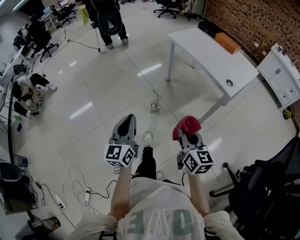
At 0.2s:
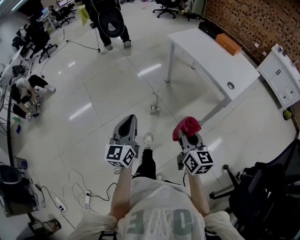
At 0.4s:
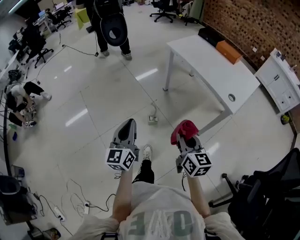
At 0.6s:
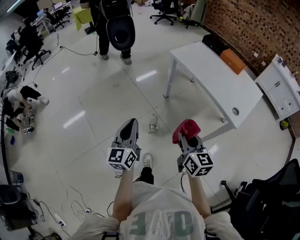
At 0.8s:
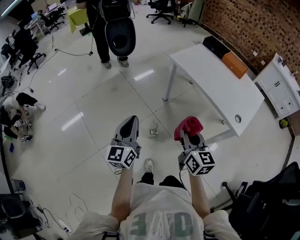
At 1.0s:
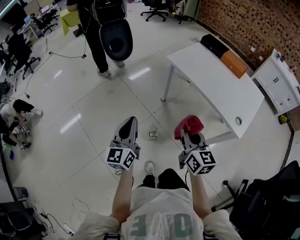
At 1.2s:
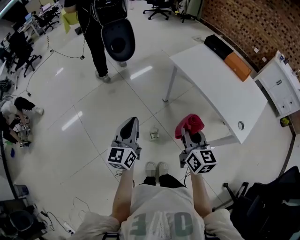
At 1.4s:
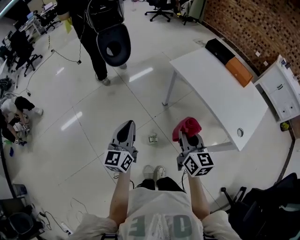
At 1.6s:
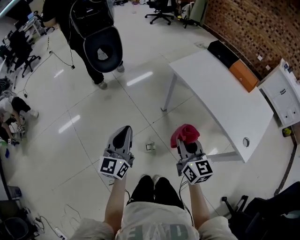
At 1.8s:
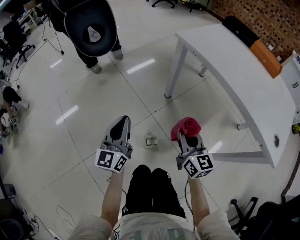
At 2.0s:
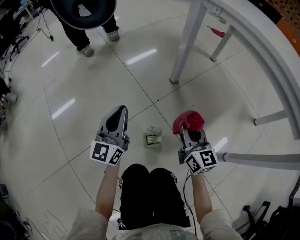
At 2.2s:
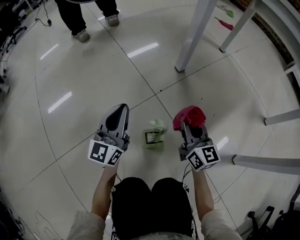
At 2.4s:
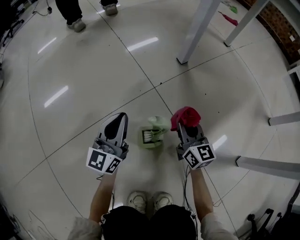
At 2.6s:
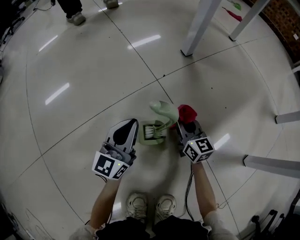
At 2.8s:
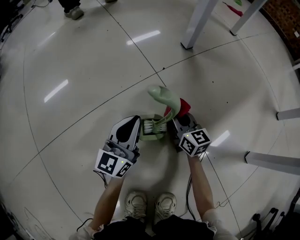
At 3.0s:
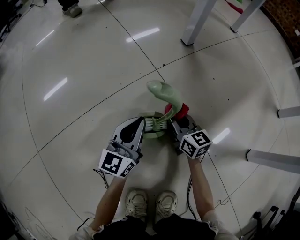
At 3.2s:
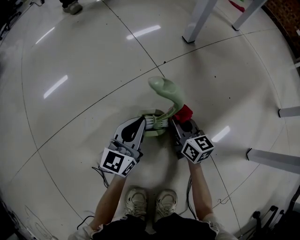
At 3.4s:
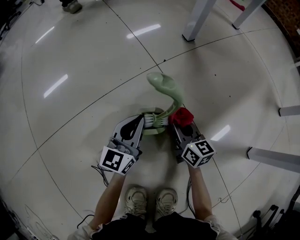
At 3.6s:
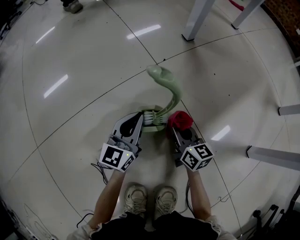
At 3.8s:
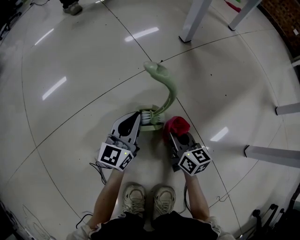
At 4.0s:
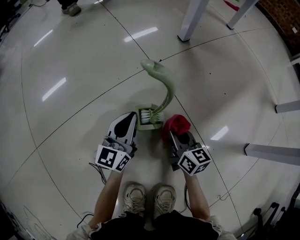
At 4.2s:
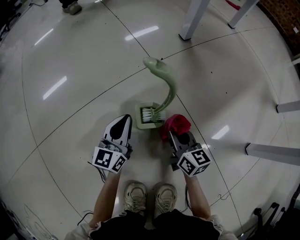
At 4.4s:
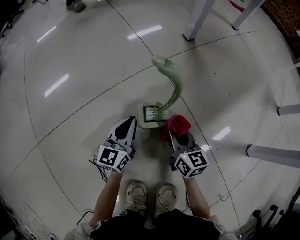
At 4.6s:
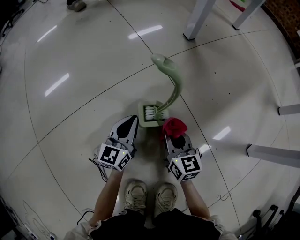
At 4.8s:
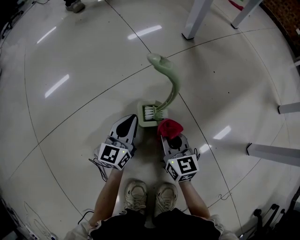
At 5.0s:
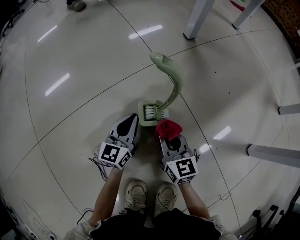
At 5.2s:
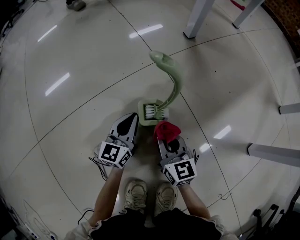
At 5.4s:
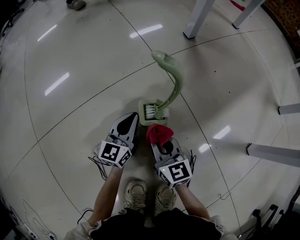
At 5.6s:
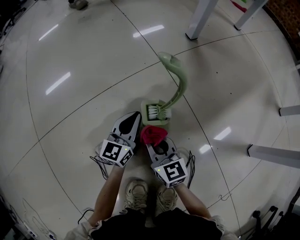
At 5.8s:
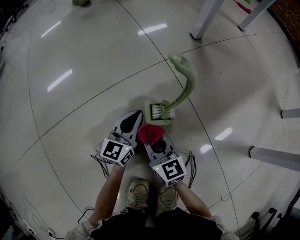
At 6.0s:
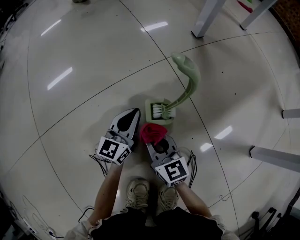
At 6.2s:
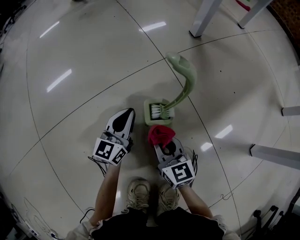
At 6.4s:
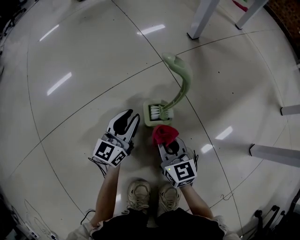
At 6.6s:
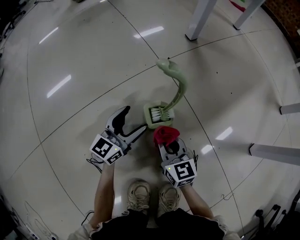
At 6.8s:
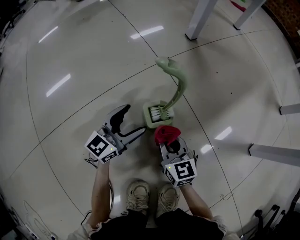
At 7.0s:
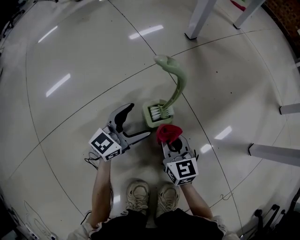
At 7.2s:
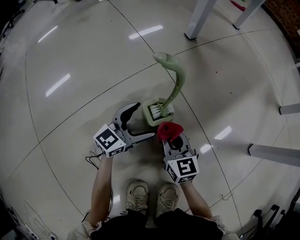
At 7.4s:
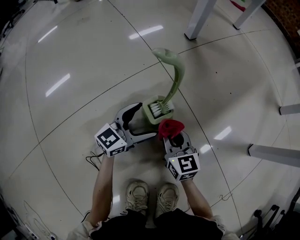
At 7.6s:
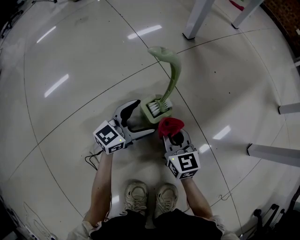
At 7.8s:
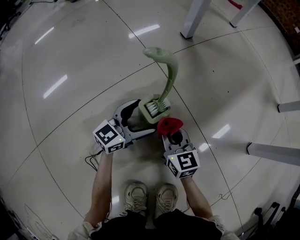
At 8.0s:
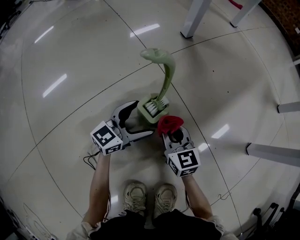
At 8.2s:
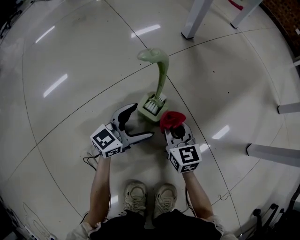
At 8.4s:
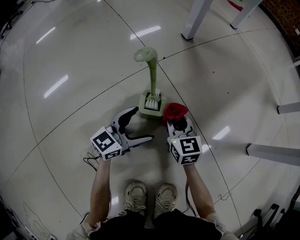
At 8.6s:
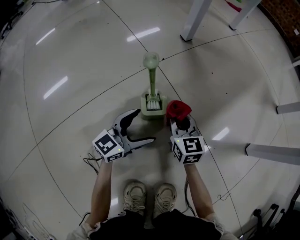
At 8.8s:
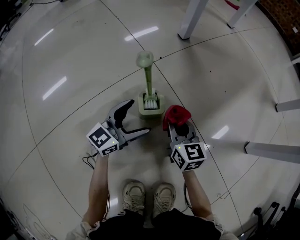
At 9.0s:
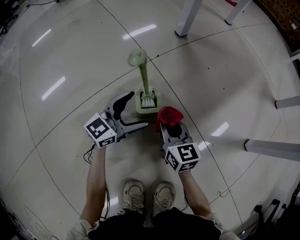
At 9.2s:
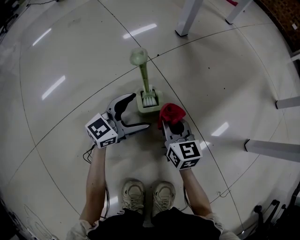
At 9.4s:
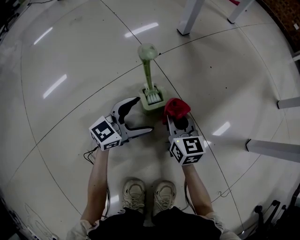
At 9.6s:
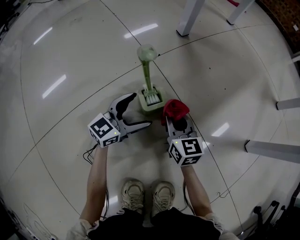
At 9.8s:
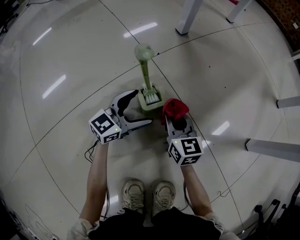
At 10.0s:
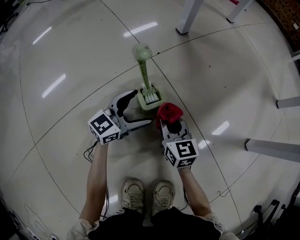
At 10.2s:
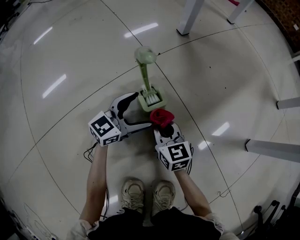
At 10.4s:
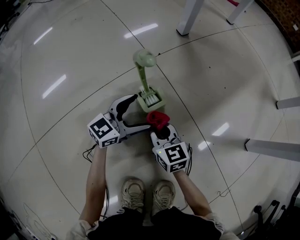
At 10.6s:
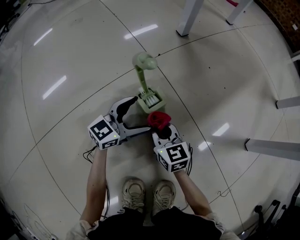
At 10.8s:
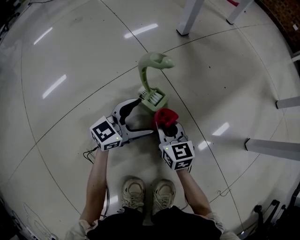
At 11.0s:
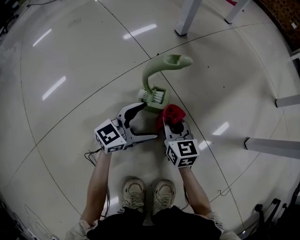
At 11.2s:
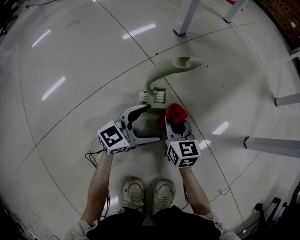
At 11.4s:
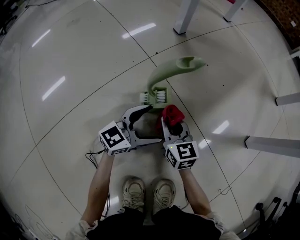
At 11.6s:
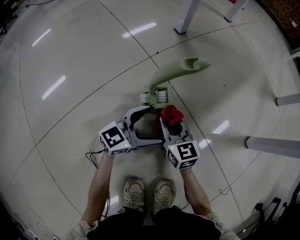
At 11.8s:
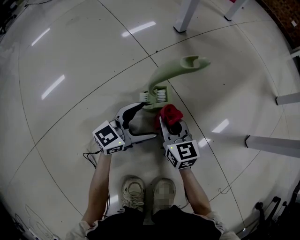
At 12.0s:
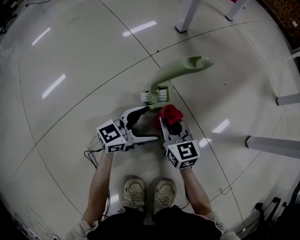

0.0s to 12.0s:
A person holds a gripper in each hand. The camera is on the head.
0.0s to 1.6s: The two grippers travel together, forward, some 50 cm.
1.6s to 3.0s: Both grippers move downward, some 80 cm. The right gripper rotates approximately 20 degrees.
3.0s to 4.4s: The right gripper shifts about 10 cm backward; the left gripper travels downward by some 5 cm.
4.4s to 6.0s: The right gripper travels to the left by some 10 cm.
6.0s to 7.6s: The right gripper goes roughly 10 cm to the right and forward. The left gripper is displaced to the right by some 5 cm, changes its angle by roughly 30 degrees, and opens up.
9.0s to 10.4s: The right gripper shifts by some 5 cm.
10.4s to 12.0s: The left gripper goes about 5 cm to the right.

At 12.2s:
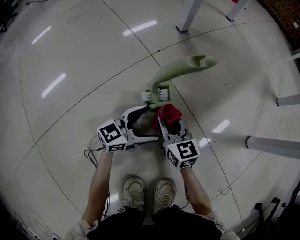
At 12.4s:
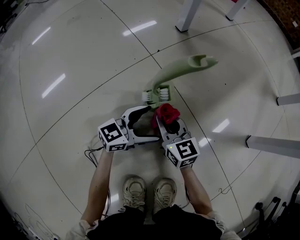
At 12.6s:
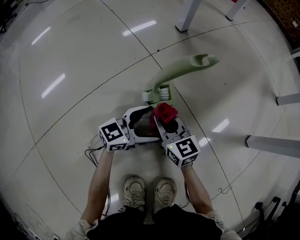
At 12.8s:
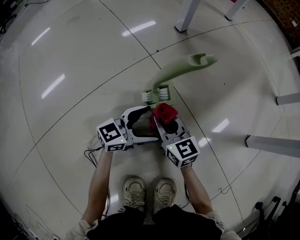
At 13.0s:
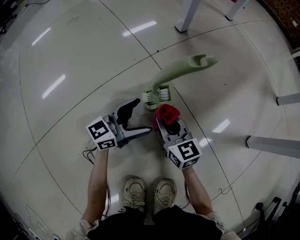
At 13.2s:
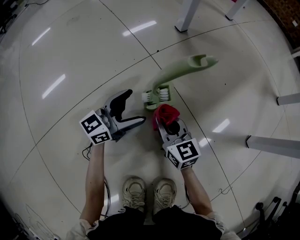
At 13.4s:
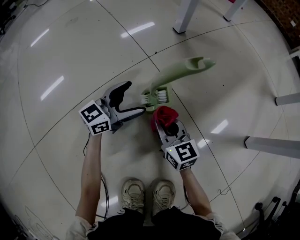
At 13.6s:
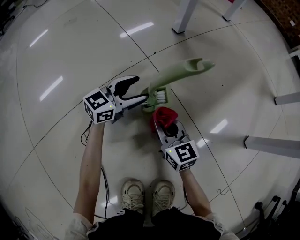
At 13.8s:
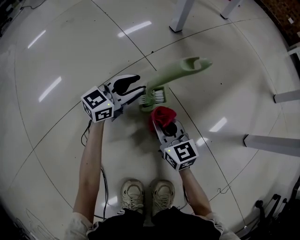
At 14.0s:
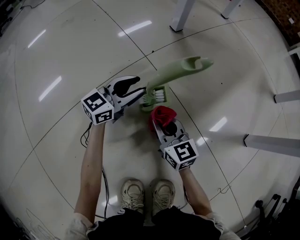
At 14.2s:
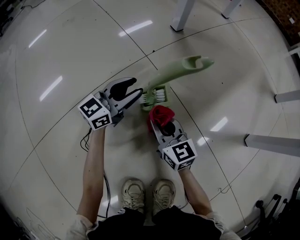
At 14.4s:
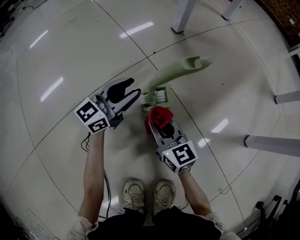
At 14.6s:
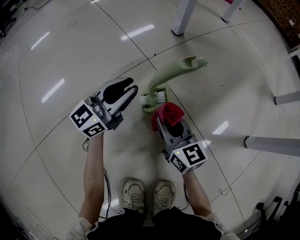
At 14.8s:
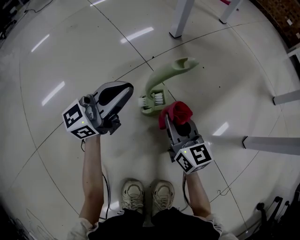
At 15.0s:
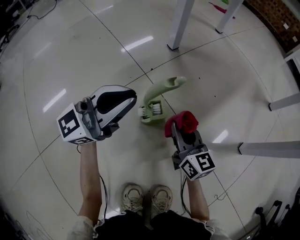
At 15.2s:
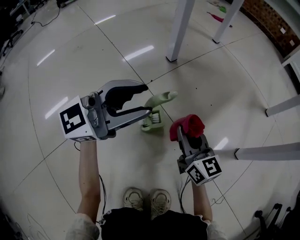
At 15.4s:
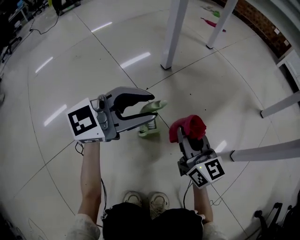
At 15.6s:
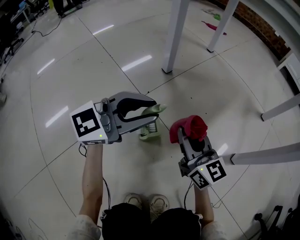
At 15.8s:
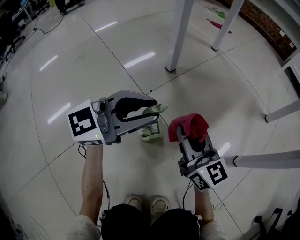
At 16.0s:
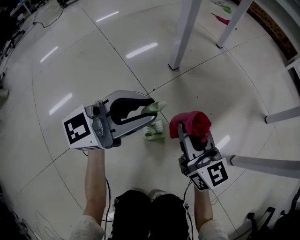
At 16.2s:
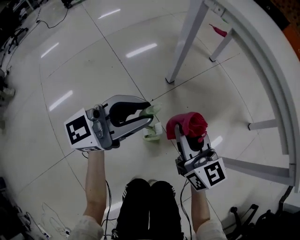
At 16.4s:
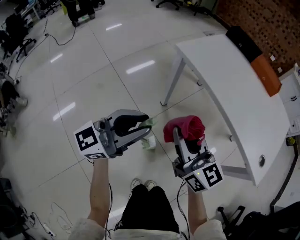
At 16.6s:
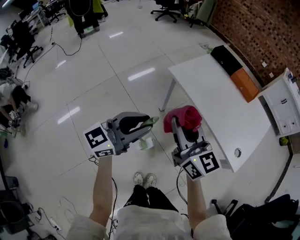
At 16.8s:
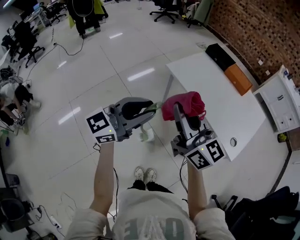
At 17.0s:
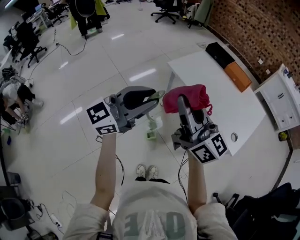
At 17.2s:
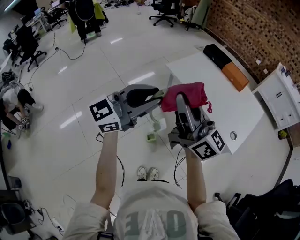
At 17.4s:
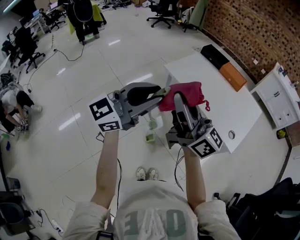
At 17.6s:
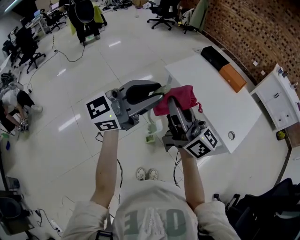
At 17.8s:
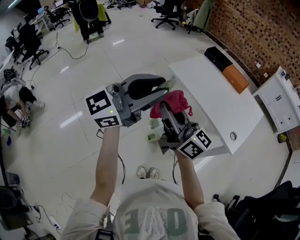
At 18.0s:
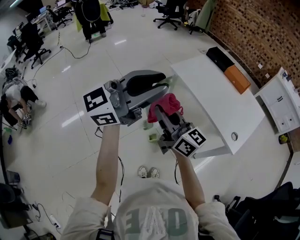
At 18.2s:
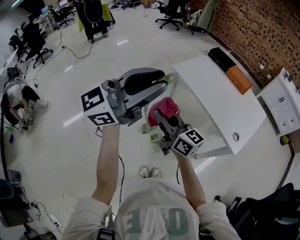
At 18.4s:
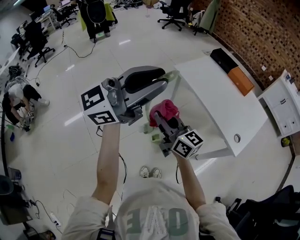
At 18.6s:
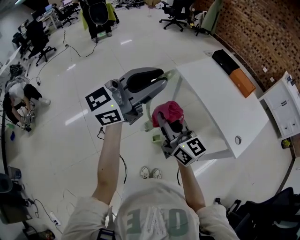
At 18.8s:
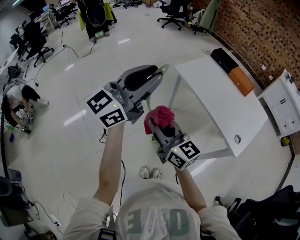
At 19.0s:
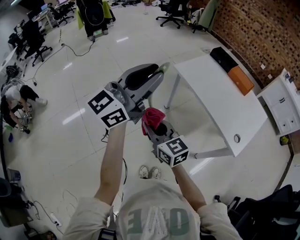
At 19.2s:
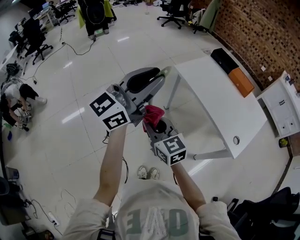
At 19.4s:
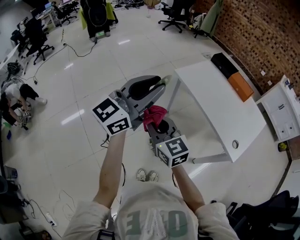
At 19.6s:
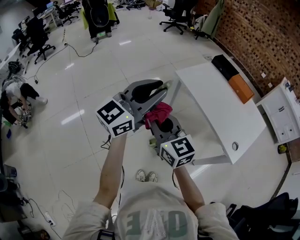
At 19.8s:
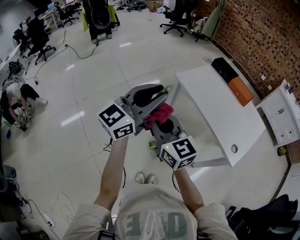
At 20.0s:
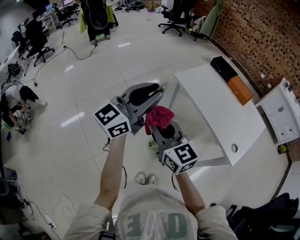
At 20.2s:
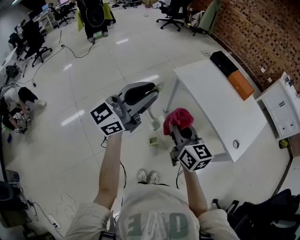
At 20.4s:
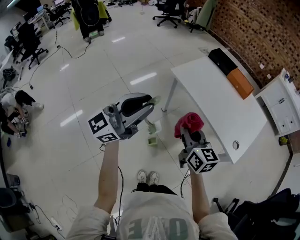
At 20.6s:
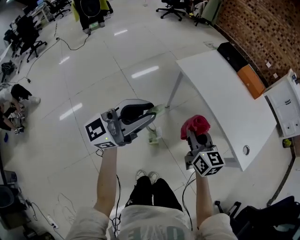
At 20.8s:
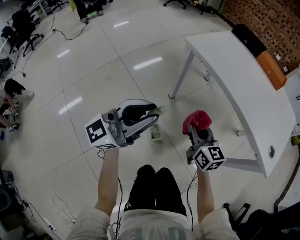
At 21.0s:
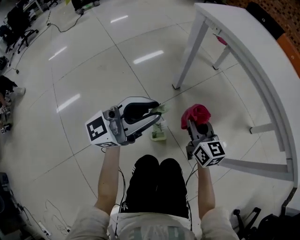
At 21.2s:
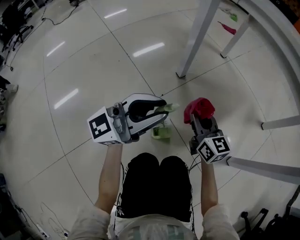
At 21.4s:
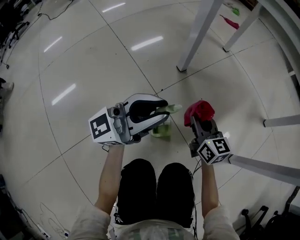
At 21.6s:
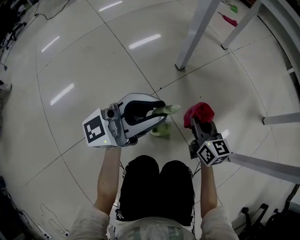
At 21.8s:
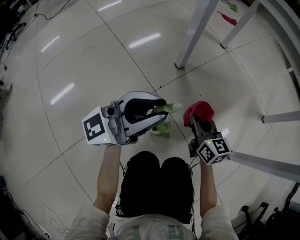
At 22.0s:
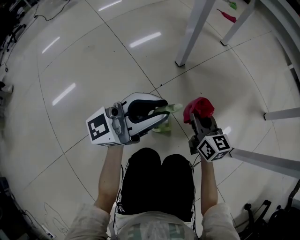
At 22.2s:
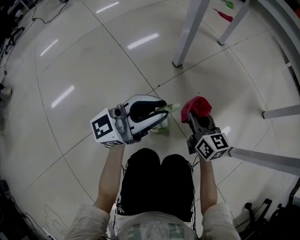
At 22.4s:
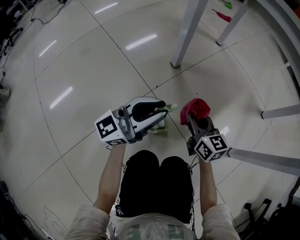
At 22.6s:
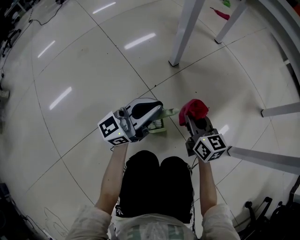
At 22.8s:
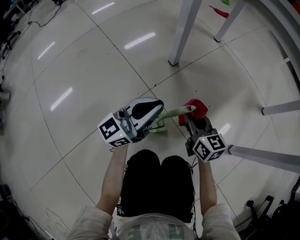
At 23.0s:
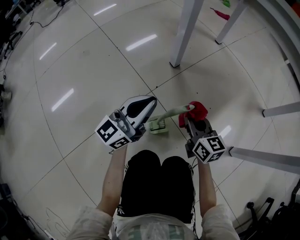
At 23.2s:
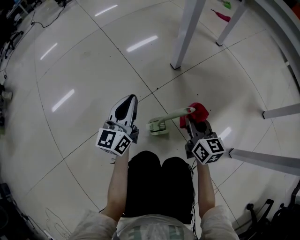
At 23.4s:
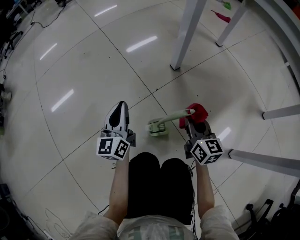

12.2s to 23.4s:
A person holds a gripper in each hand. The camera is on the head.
12.2s to 13.8s: The left gripper goes approximately 15 cm forward and to the left, and closes its fingers.
13.8s to 15.4s: The right gripper heads upward and to the right, covering roughly 25 cm. The left gripper goes roughly 30 cm upward, and rotates some 30 degrees.
15.4s to 17.0s: Both grippers travel together upward, roughly 80 cm. The right gripper changes its angle by approximately 30 degrees.
17.0s to 18.6s: The left gripper travels upward by approximately 10 cm. The right gripper goes about 15 cm downward, to the left and backward.
18.6s to 20.2s: The right gripper shifts by about 5 cm; the left gripper goes about 5 cm downward.
20.2s to 21.8s: The grippers both shift downward by some 70 cm.
21.8s to 23.4s: The left gripper travels downward by approximately 20 cm, and swivels approximately 70 degrees.

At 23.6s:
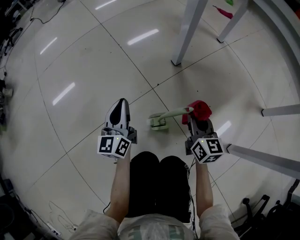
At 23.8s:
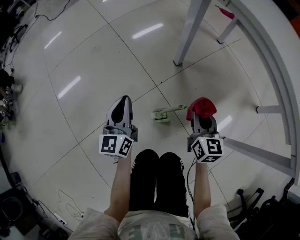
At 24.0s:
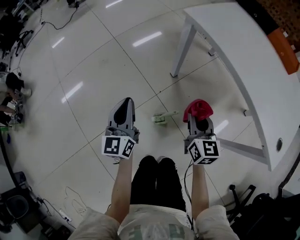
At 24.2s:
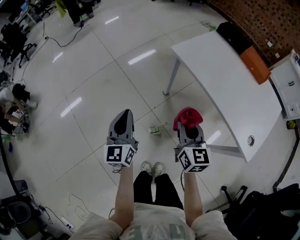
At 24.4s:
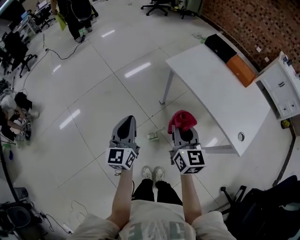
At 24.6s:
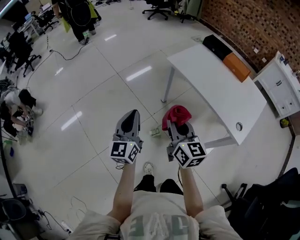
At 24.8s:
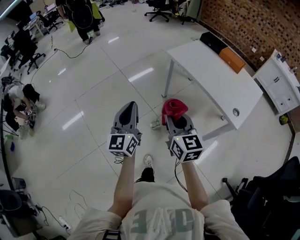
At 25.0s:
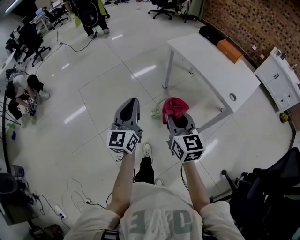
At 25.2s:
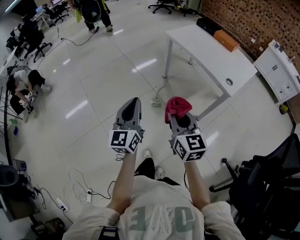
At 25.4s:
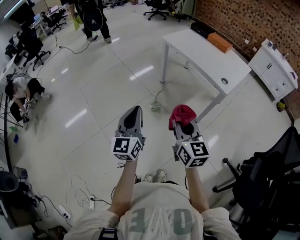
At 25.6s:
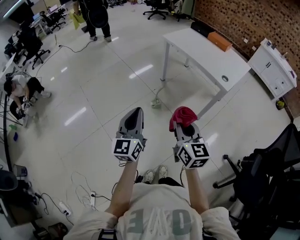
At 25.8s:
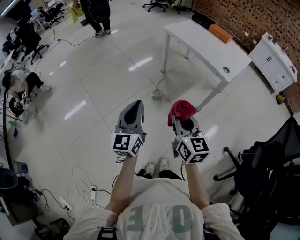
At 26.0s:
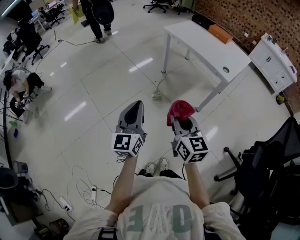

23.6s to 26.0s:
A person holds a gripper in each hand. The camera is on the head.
23.6s to 24.8s: The right gripper is displaced upward by about 70 cm. Meanwhile the left gripper shifts roughly 70 cm upward and backward.
24.8s to 26.0s: Both grippers travel together backward, some 35 cm.
